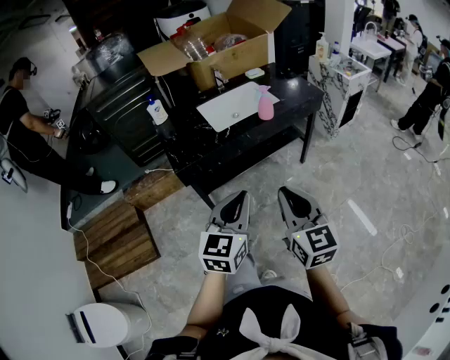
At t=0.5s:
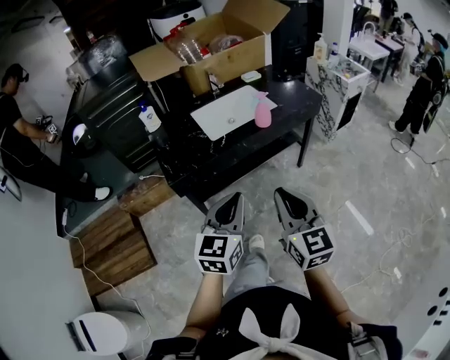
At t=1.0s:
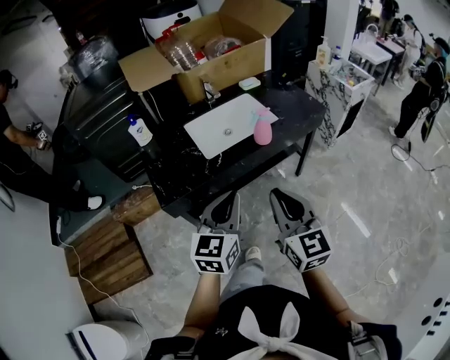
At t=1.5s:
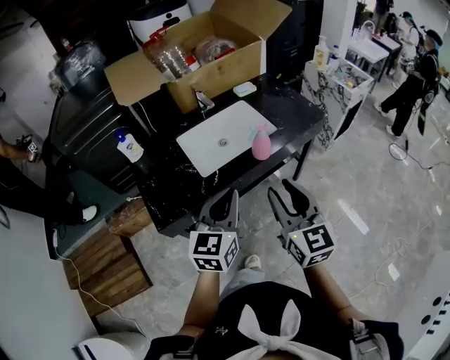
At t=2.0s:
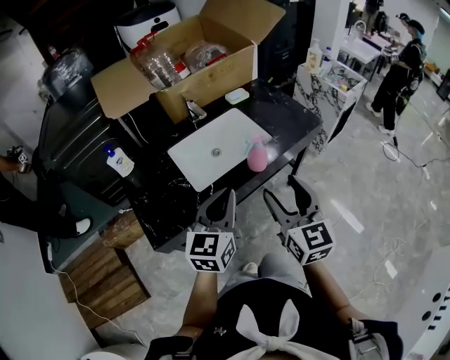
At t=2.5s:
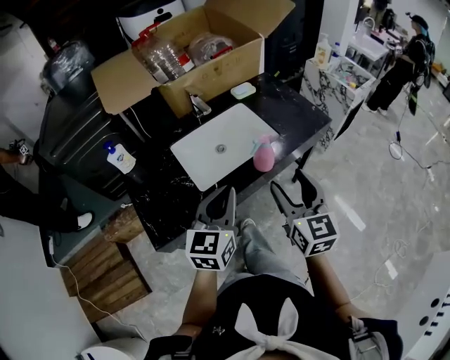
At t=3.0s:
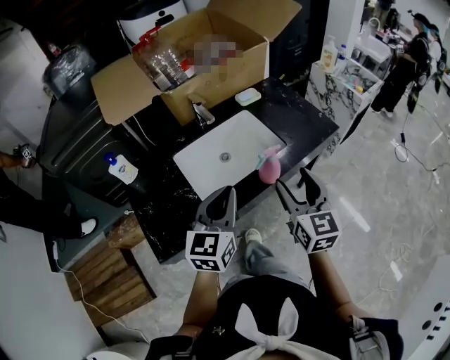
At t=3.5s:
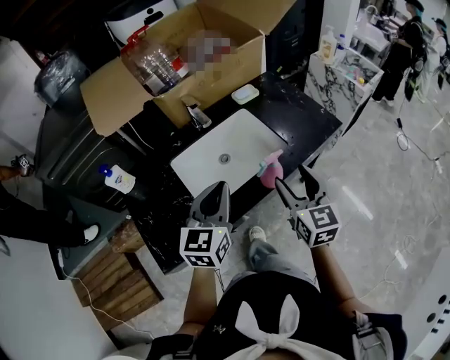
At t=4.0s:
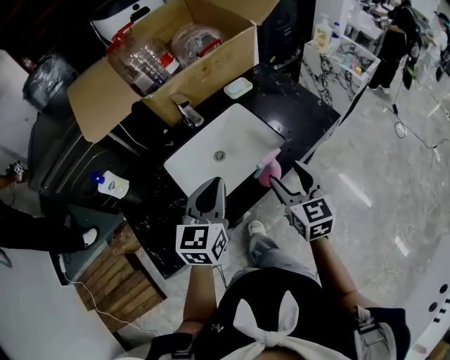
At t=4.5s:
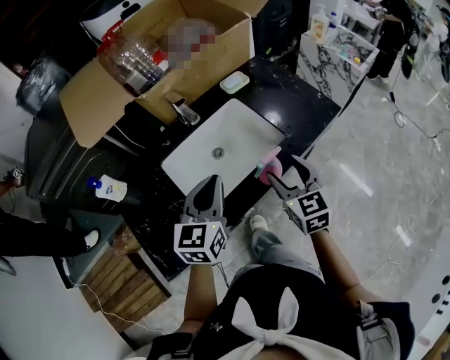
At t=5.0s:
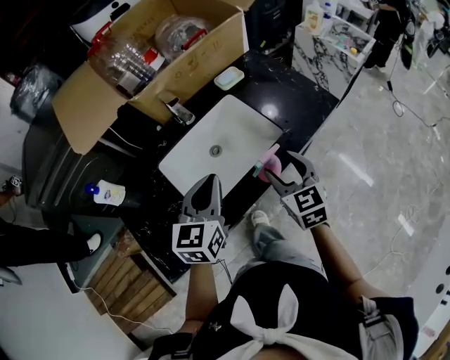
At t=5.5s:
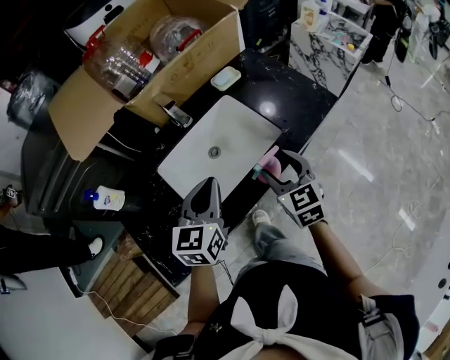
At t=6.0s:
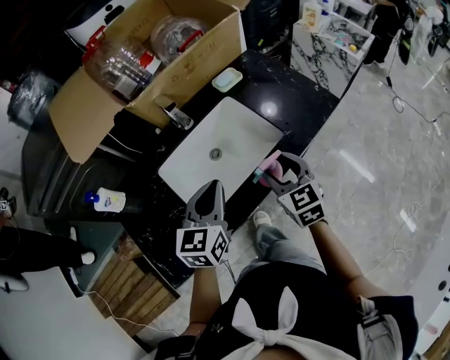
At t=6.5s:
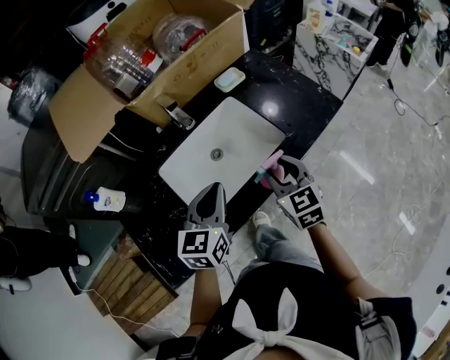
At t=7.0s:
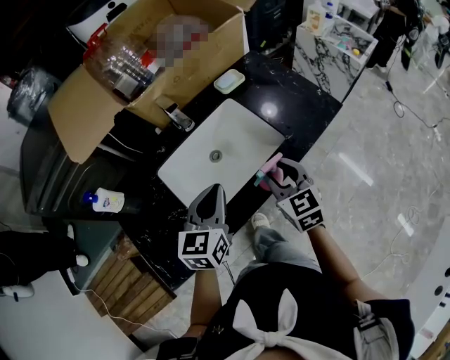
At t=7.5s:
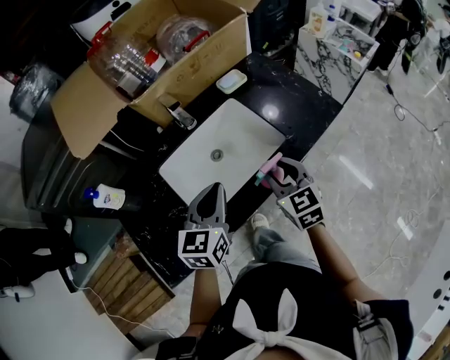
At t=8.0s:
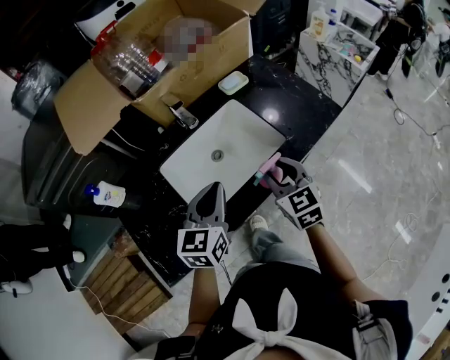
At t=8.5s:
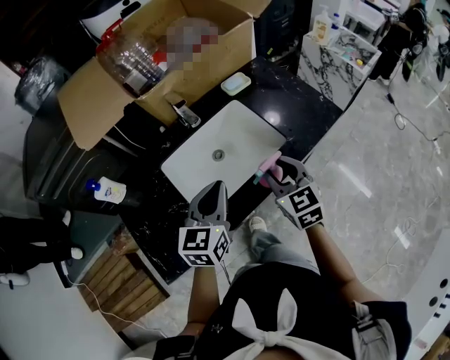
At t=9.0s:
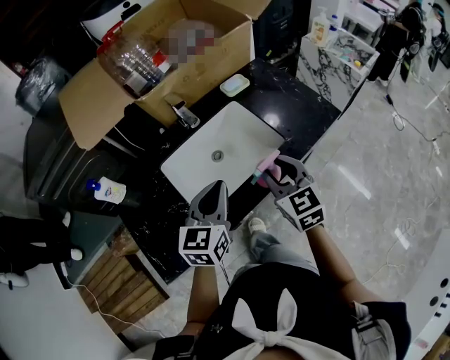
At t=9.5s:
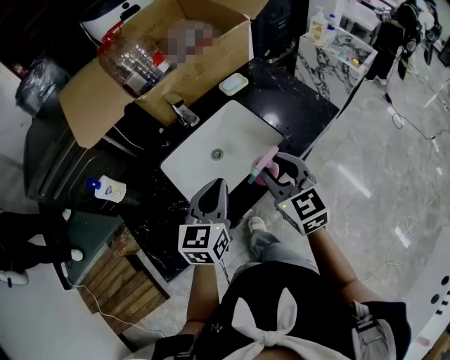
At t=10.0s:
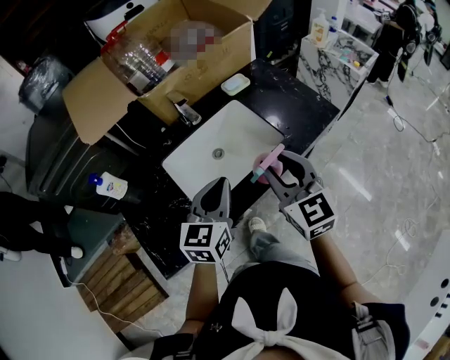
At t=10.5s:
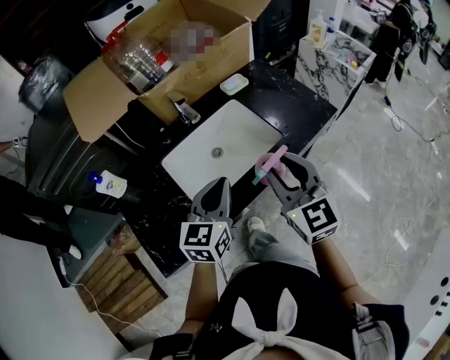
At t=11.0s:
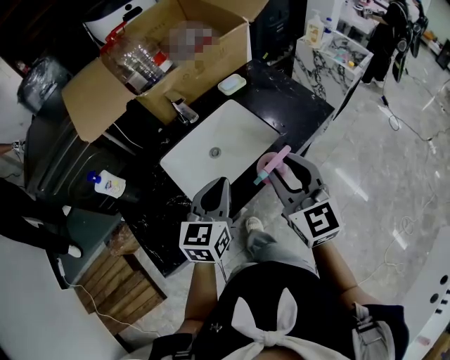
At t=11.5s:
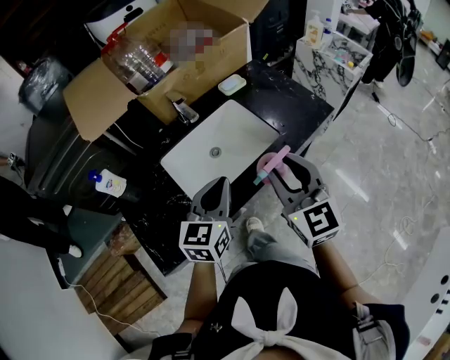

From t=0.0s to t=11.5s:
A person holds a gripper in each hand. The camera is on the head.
From t=0.0s to t=2.0s: Both grippers move forward, about 35 cm. The right gripper opens up.
From t=2.0s to t=4.0s: The left gripper moves forward, about 15 cm. The right gripper travels forward and downward by some 20 cm.
From t=4.0s to t=6.0s: The right gripper moves some 5 cm.
From t=6.0s to t=7.5s: The two grippers keep their place.
From t=7.5s to t=9.5s: The right gripper goes some 10 cm upward.
From t=9.5s to t=11.5s: The right gripper is displaced upward and backward by approximately 10 cm.

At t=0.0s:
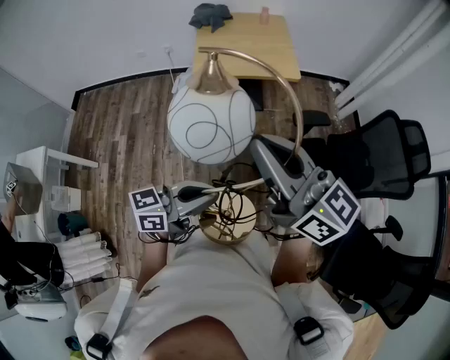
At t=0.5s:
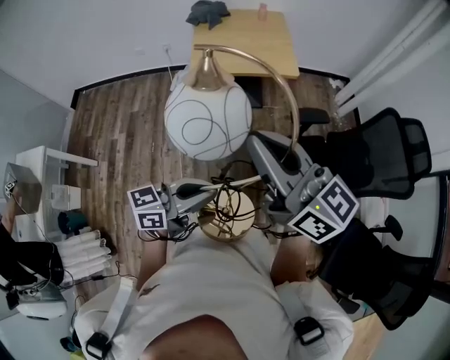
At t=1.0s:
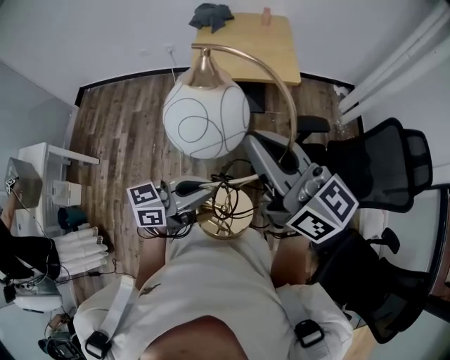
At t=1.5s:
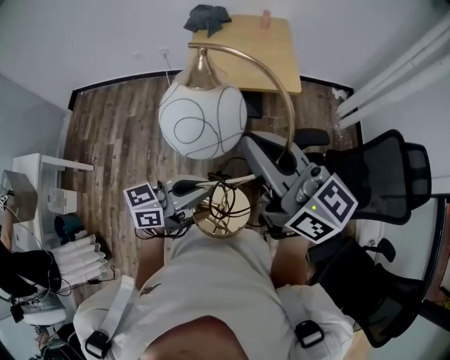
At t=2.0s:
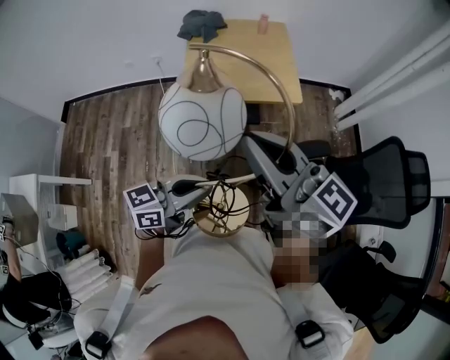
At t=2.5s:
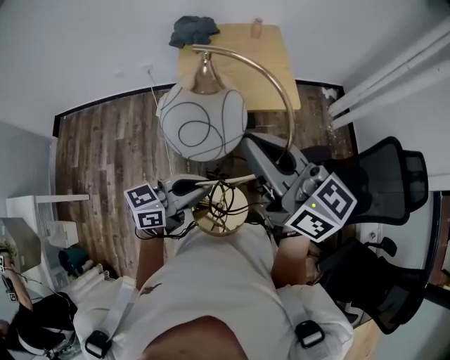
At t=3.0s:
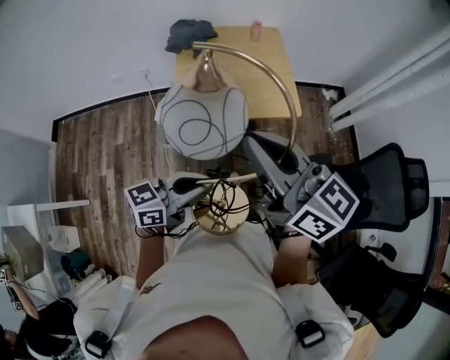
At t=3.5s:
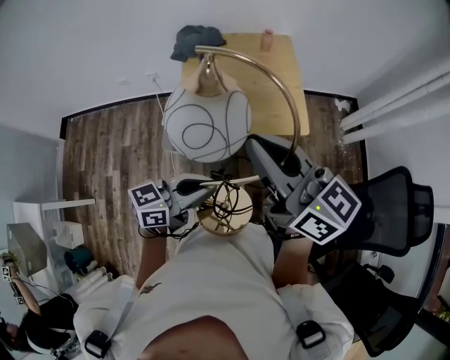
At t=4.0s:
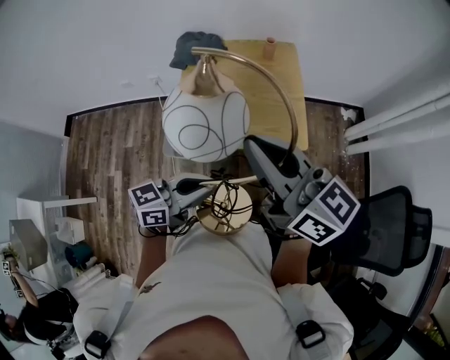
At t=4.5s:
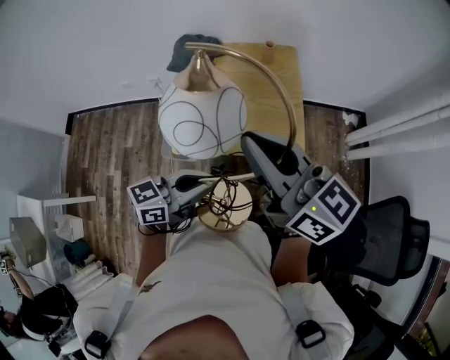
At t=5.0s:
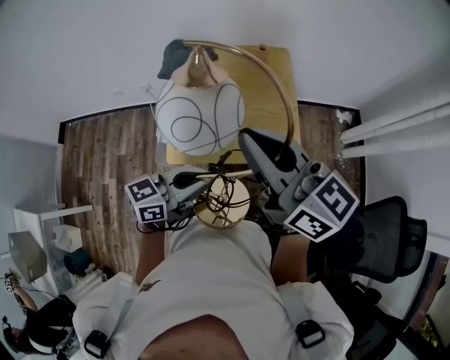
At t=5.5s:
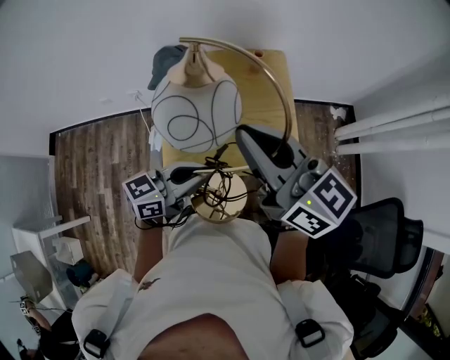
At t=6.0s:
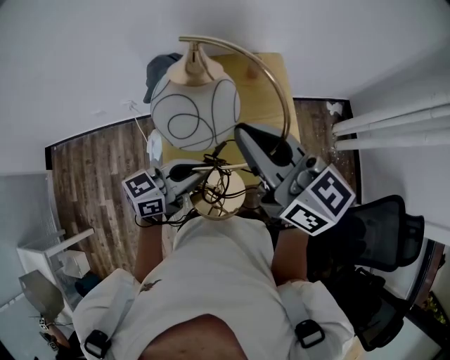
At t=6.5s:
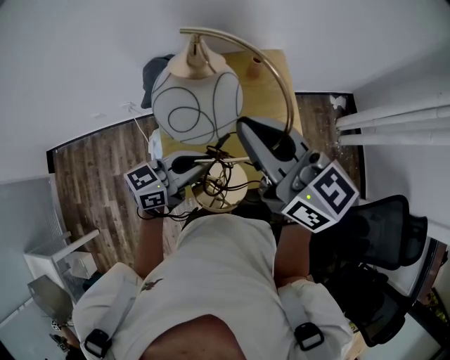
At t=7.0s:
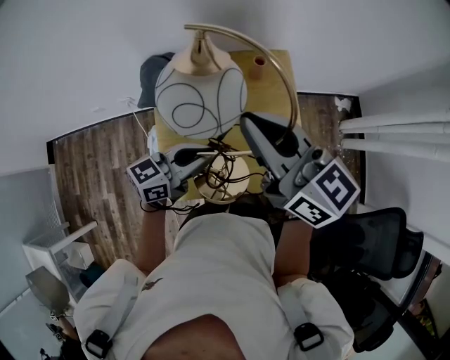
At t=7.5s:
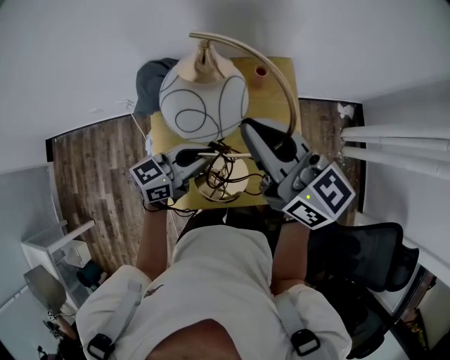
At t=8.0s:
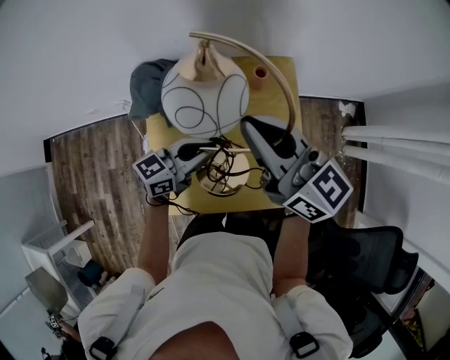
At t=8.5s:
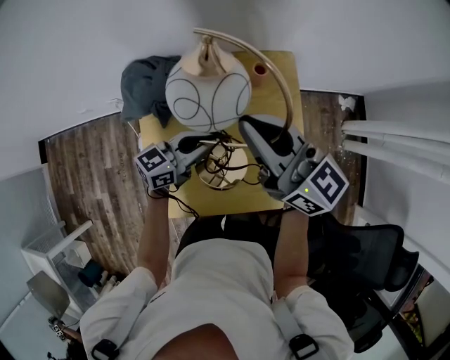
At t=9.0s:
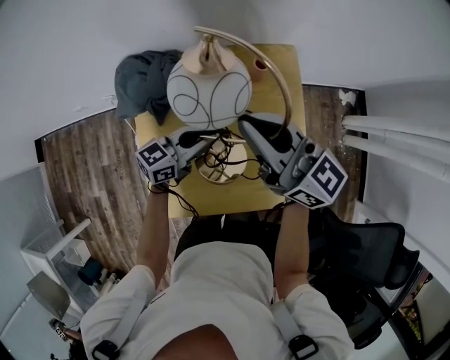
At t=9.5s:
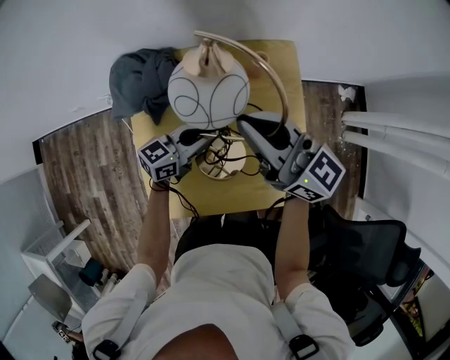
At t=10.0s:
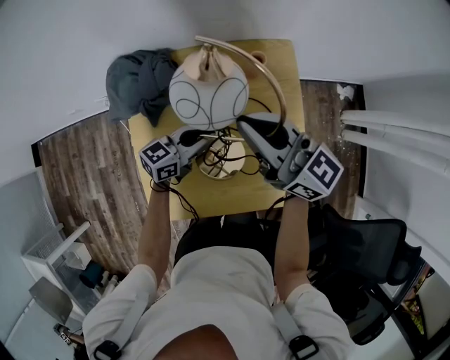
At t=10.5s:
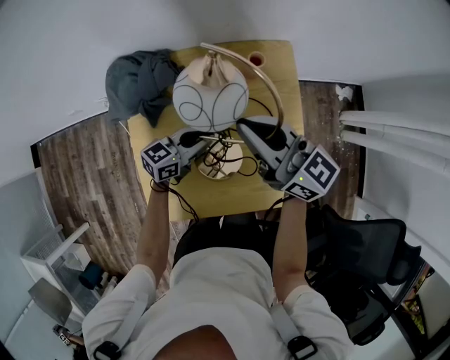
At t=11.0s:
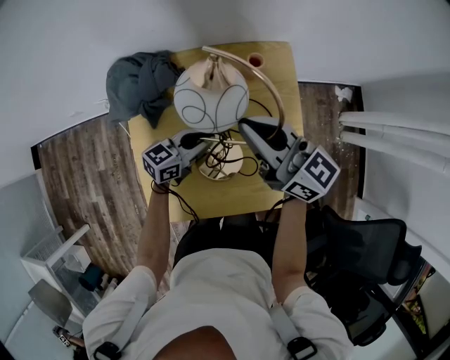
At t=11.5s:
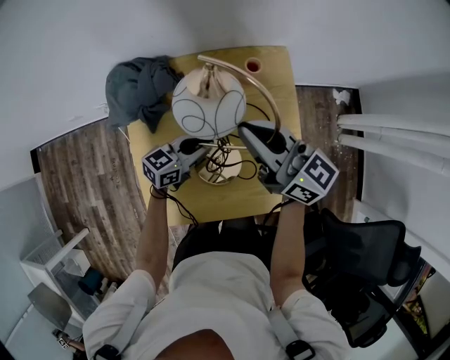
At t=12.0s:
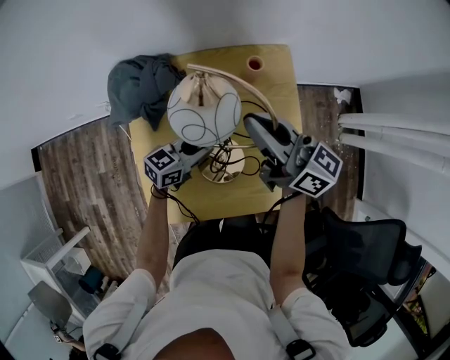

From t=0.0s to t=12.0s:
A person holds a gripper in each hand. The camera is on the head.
From t=0.0s to t=2.0s: The two grippers go approximately 20 cm forward.
From t=2.0s to t=4.0s: The grippers both shift forward by about 25 cm.
From t=4.0s to t=6.0s: Both grippers travel together forward, some 25 cm.
From t=6.0s to t=8.0s: Both grippers move forward and downward, approximately 20 cm.
From t=8.0s to t=10.0s: The grippers both shift downward by approximately 10 cm.
From t=10.0s to t=12.0s: The grippers make only small movements.

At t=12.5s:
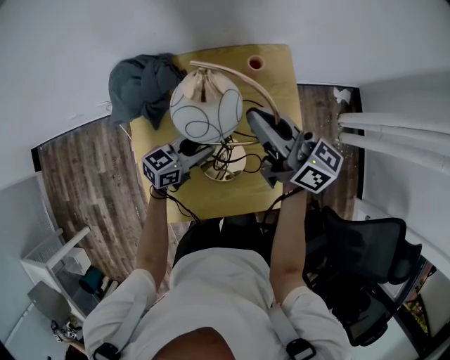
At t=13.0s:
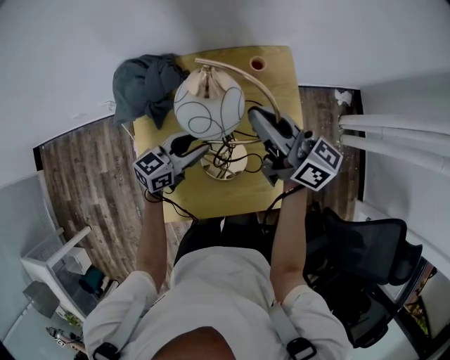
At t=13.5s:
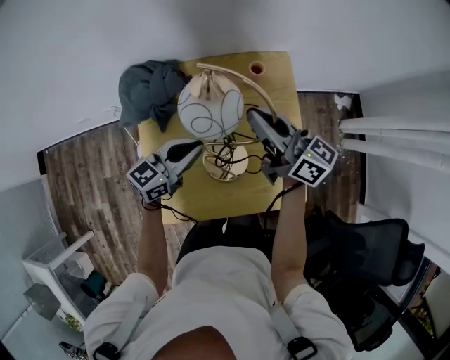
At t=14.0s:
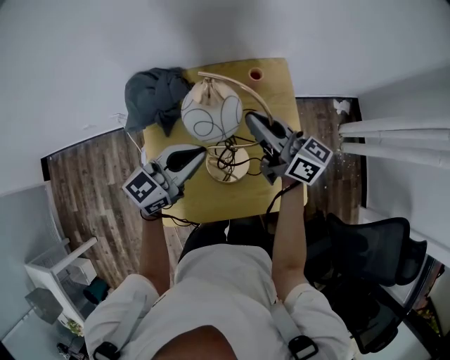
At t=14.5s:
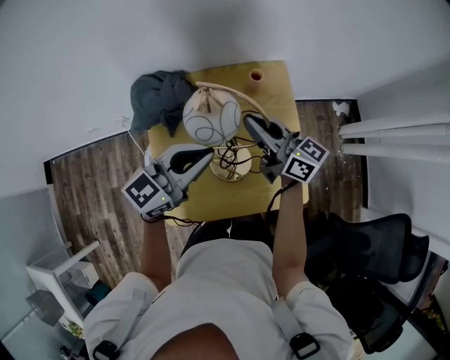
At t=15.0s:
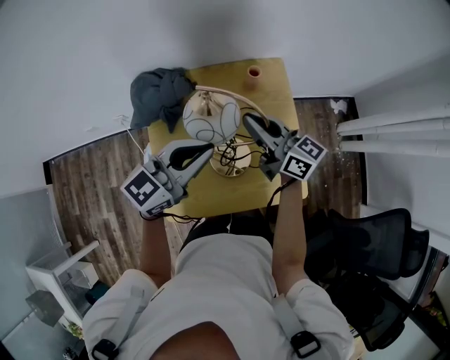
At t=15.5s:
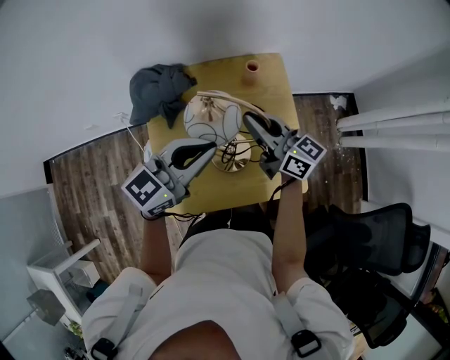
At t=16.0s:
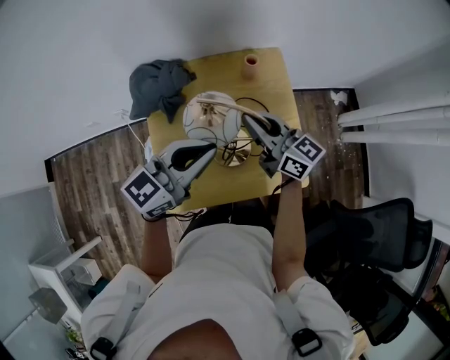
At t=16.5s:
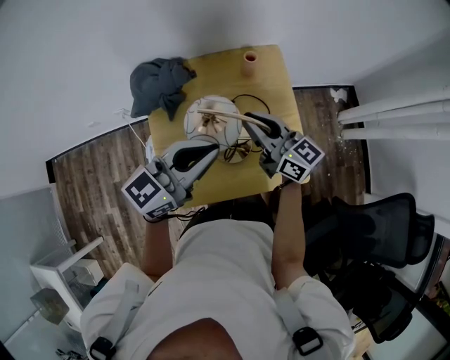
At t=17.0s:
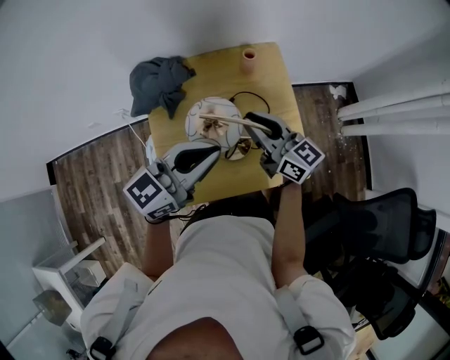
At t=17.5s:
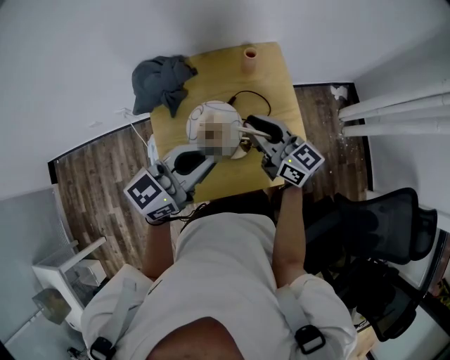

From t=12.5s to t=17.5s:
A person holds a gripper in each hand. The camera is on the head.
From t=12.5s to t=15.0s: The left gripper heads upward, covering roughly 25 cm, turns by some 20 degrees, and closes.
From t=15.0s to t=17.5s: Both grippers travel together backward, roughly 10 cm.
